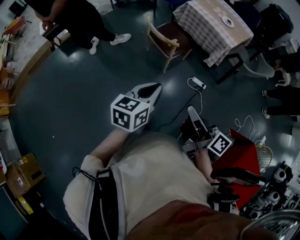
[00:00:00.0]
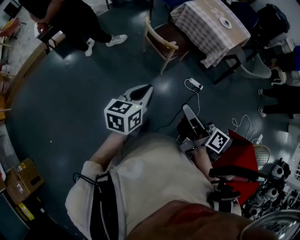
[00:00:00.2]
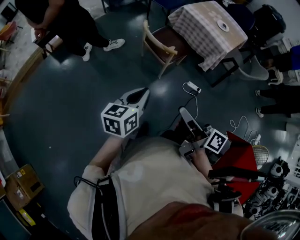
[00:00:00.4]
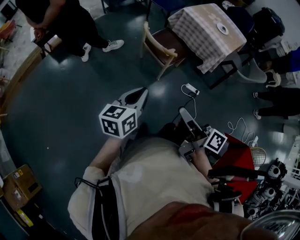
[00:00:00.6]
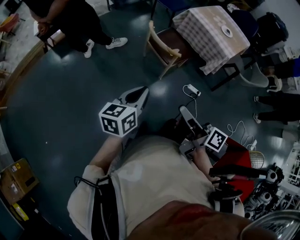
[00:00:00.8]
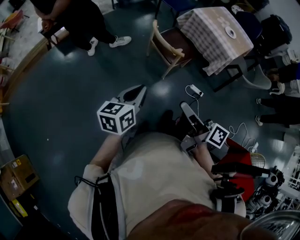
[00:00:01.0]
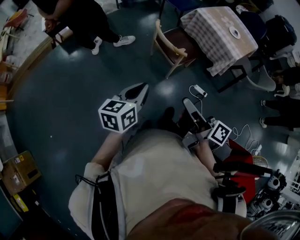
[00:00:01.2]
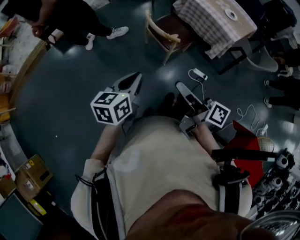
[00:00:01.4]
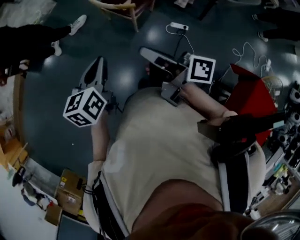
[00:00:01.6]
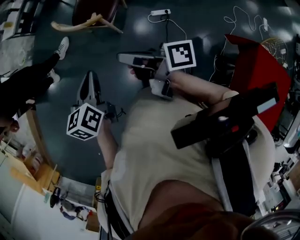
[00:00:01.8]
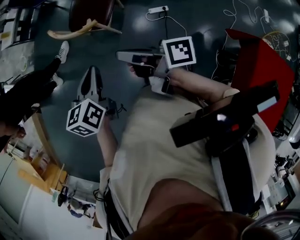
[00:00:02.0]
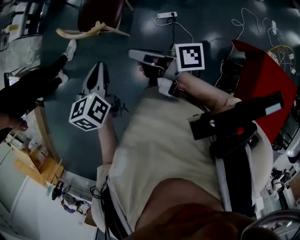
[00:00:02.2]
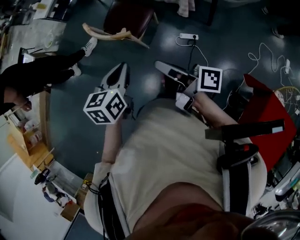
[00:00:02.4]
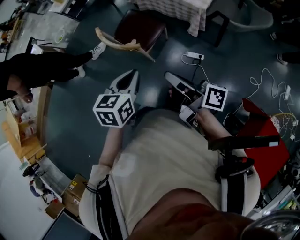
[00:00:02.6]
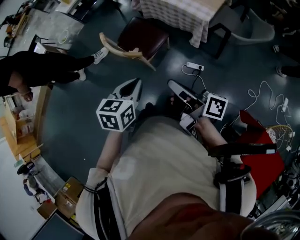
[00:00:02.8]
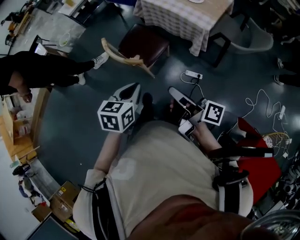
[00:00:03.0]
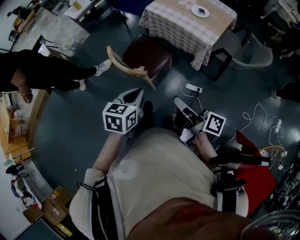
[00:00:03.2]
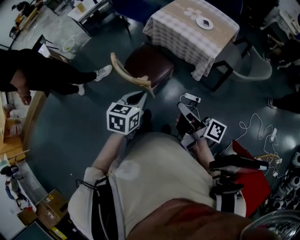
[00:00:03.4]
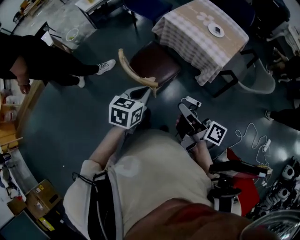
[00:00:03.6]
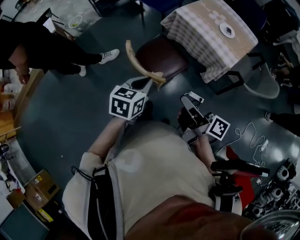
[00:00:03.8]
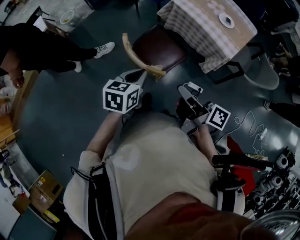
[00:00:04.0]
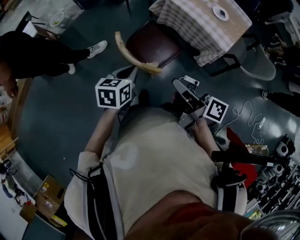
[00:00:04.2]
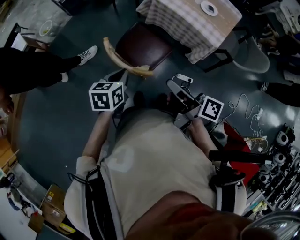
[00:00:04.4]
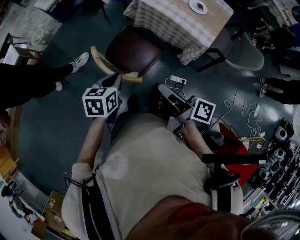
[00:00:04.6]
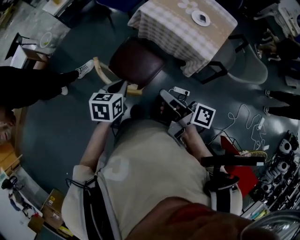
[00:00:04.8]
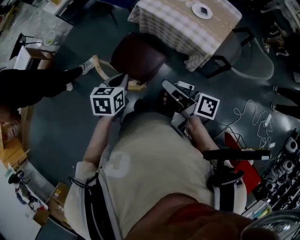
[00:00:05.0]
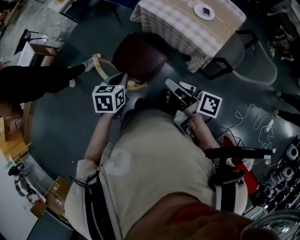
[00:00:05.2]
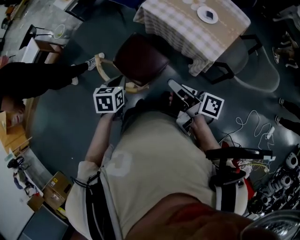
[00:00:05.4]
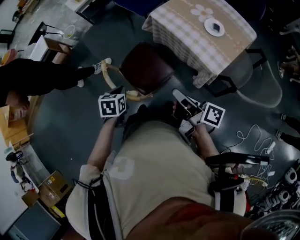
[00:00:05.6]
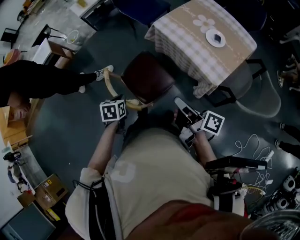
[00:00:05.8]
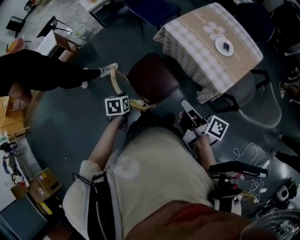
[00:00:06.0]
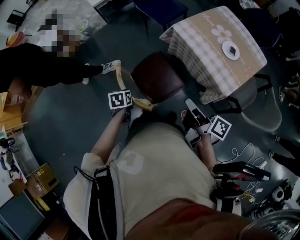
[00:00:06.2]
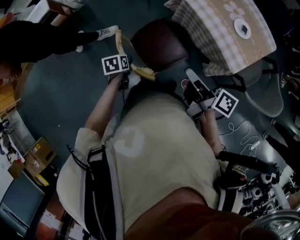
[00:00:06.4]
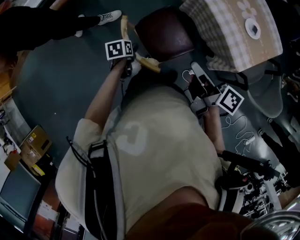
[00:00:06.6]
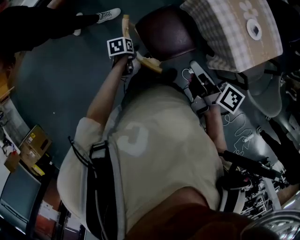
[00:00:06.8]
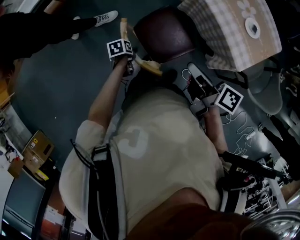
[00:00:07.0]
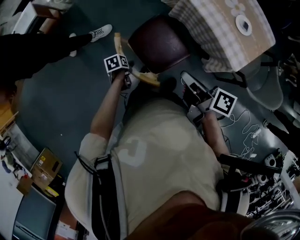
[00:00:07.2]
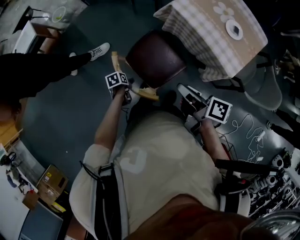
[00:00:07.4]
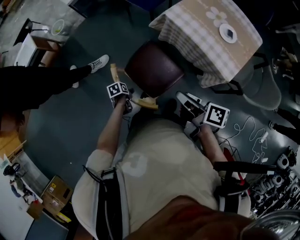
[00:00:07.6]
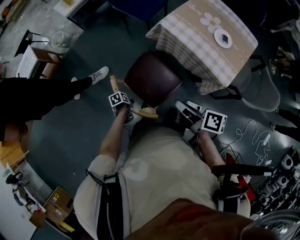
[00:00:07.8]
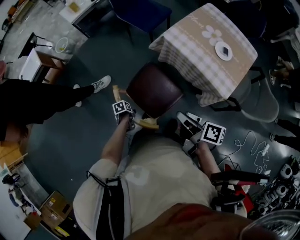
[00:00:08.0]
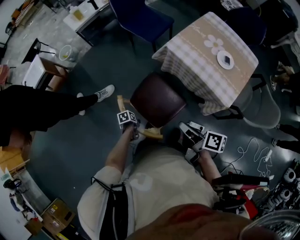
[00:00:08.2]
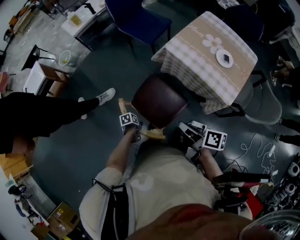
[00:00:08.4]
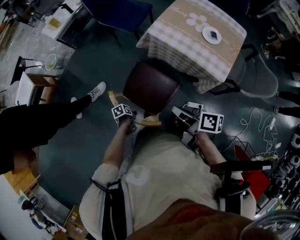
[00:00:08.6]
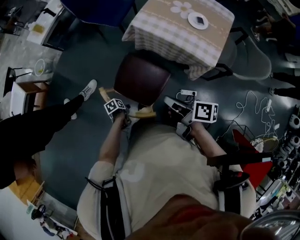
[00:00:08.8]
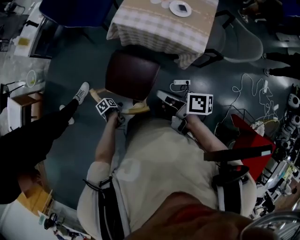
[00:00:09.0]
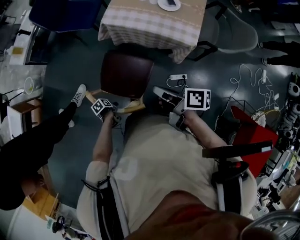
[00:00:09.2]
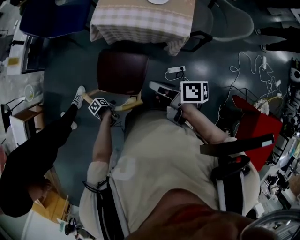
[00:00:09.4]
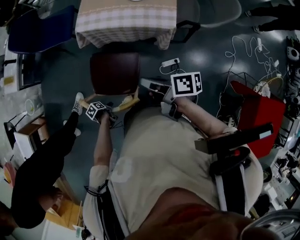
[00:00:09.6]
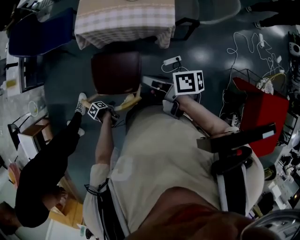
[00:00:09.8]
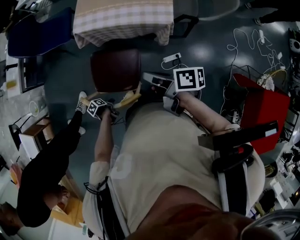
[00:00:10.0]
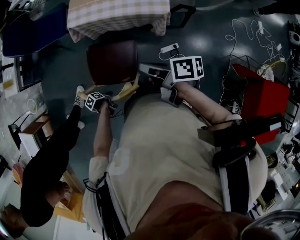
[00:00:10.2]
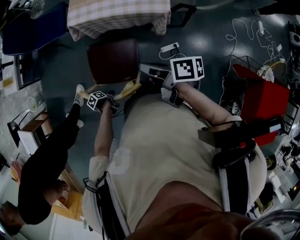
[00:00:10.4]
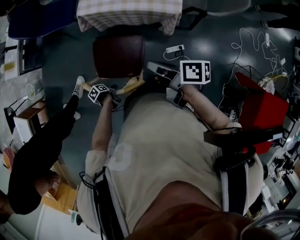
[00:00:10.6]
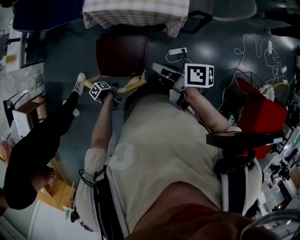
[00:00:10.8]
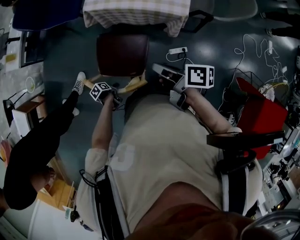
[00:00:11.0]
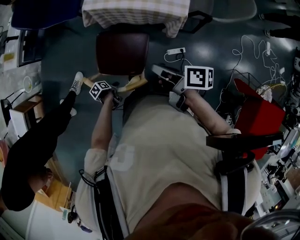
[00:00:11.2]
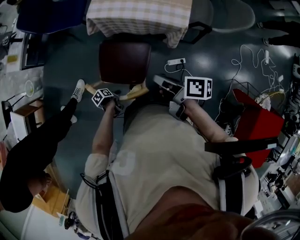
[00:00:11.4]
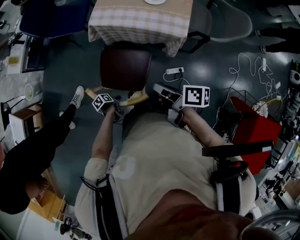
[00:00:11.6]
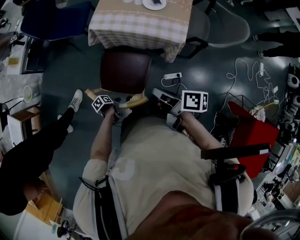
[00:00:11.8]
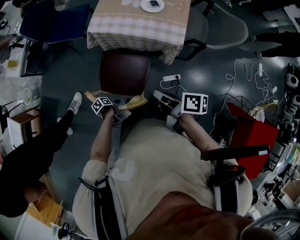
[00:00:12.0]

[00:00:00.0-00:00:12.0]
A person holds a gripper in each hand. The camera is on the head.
00:00:00.0 to 00:00:01.6: The left gripper changes place by some 15 cm.
00:00:01.6 to 00:00:03.0: The left gripper shifts by approximately 20 cm, and changes its angle by approximately 20 degrees.
00:00:03.0 to 00:00:04.4: The left gripper changes place by about 25 cm.
00:00:04.4 to 00:00:06.0: The left gripper travels downward by approximately 10 cm, and swivels approximately 30 degrees.
00:00:06.0 to 00:00:07.6: The left gripper travels downward by some 20 cm, swivels approximately 30 degrees, and opens its fingers.
00:00:10.4 to 00:00:12.0: The left gripper shifts by approximately 5 cm.

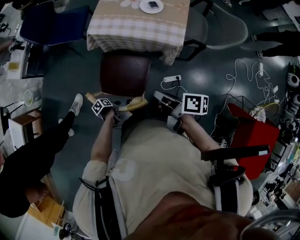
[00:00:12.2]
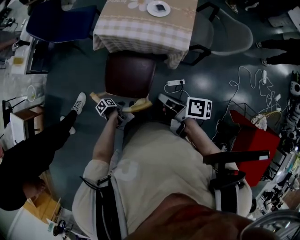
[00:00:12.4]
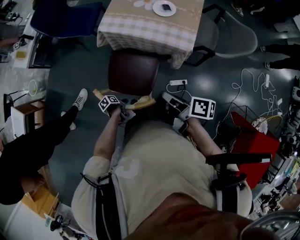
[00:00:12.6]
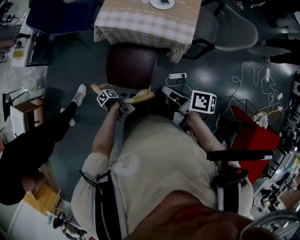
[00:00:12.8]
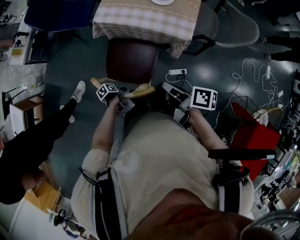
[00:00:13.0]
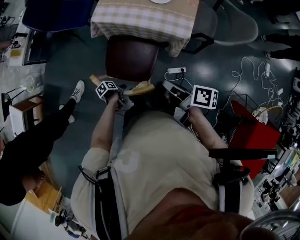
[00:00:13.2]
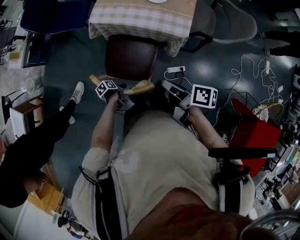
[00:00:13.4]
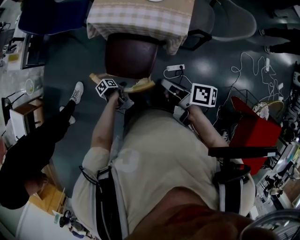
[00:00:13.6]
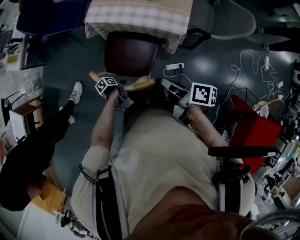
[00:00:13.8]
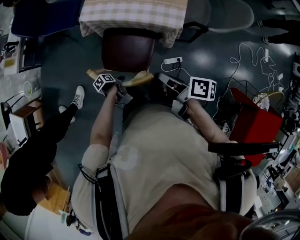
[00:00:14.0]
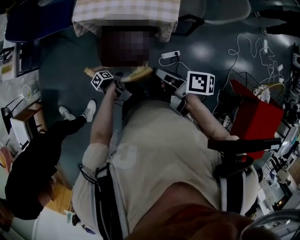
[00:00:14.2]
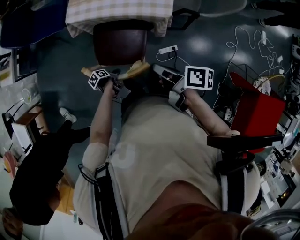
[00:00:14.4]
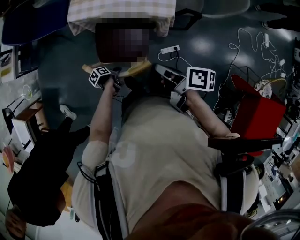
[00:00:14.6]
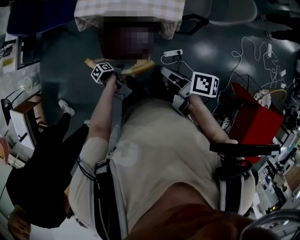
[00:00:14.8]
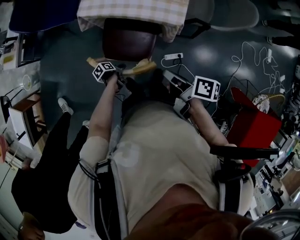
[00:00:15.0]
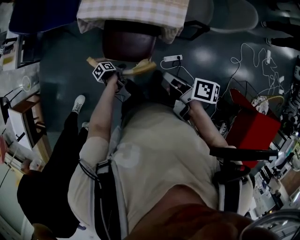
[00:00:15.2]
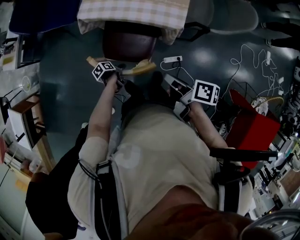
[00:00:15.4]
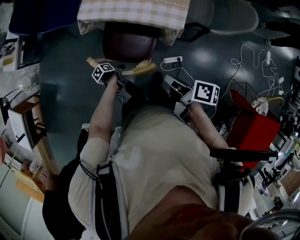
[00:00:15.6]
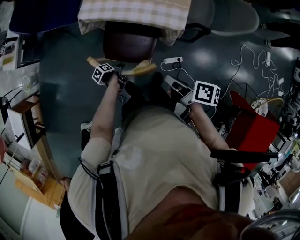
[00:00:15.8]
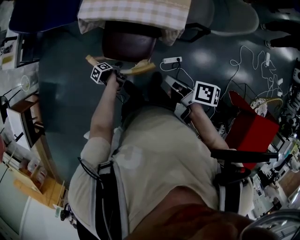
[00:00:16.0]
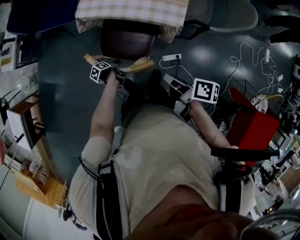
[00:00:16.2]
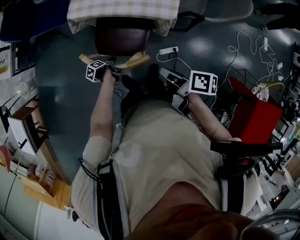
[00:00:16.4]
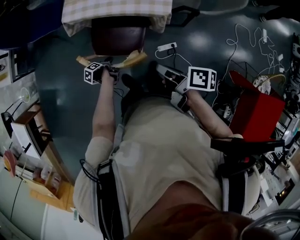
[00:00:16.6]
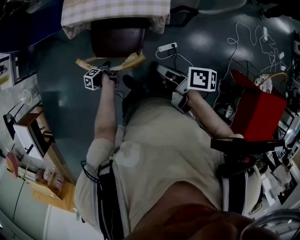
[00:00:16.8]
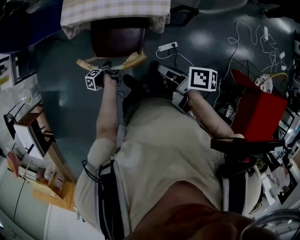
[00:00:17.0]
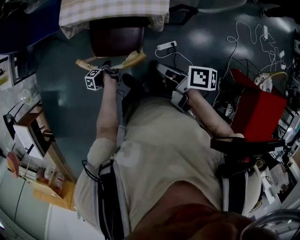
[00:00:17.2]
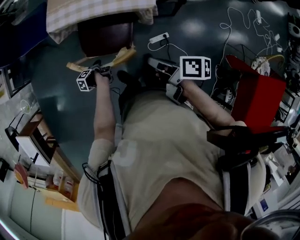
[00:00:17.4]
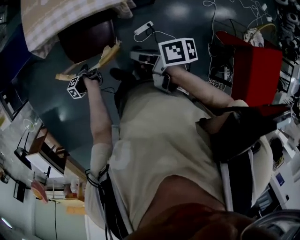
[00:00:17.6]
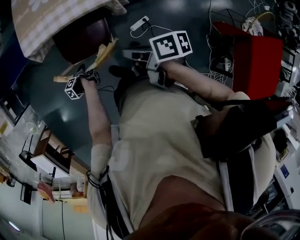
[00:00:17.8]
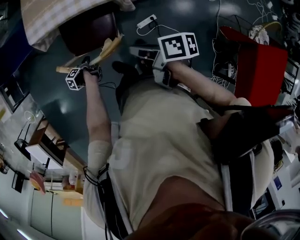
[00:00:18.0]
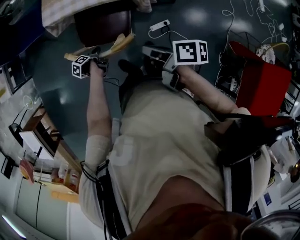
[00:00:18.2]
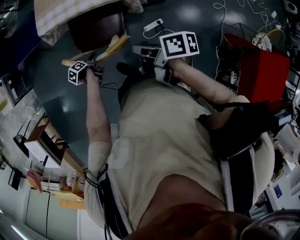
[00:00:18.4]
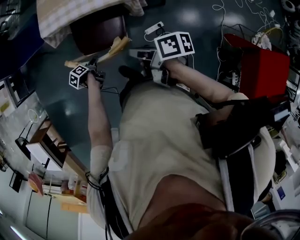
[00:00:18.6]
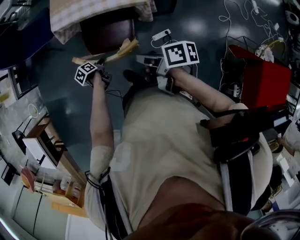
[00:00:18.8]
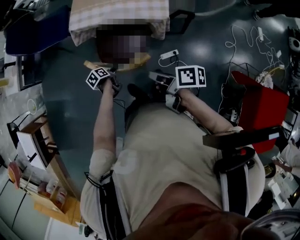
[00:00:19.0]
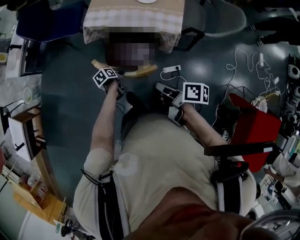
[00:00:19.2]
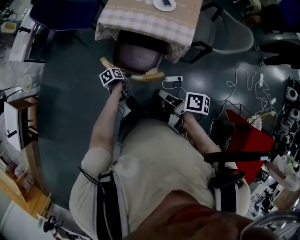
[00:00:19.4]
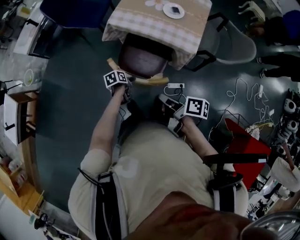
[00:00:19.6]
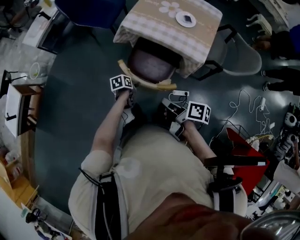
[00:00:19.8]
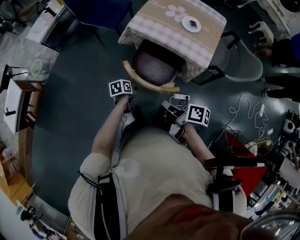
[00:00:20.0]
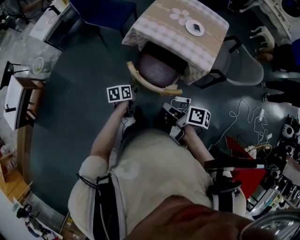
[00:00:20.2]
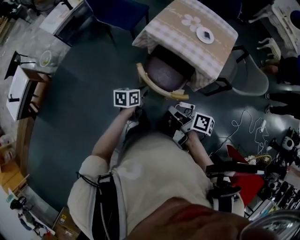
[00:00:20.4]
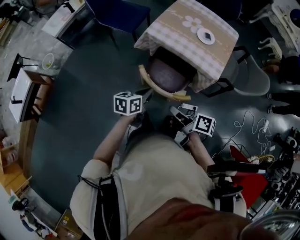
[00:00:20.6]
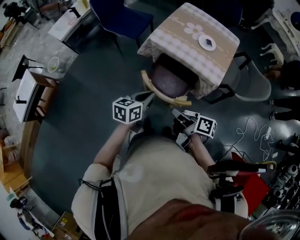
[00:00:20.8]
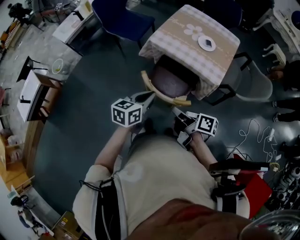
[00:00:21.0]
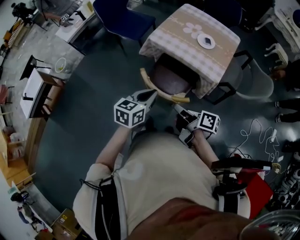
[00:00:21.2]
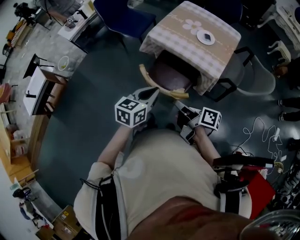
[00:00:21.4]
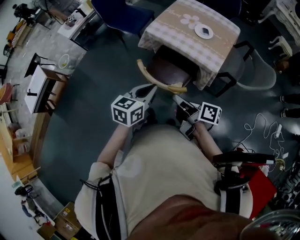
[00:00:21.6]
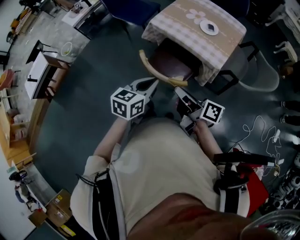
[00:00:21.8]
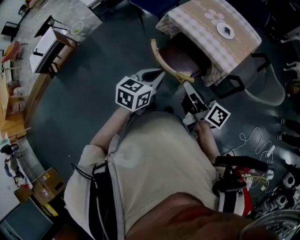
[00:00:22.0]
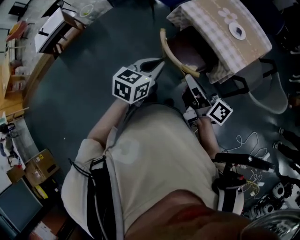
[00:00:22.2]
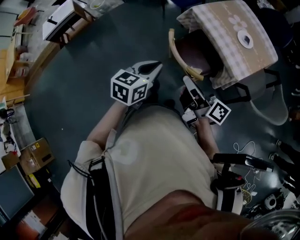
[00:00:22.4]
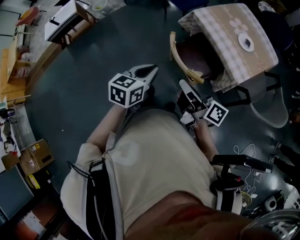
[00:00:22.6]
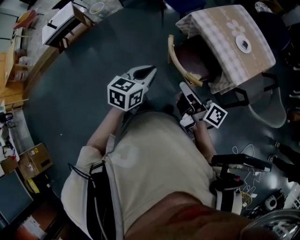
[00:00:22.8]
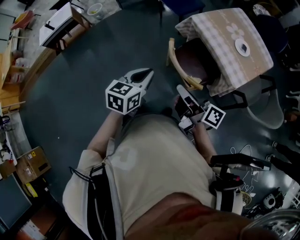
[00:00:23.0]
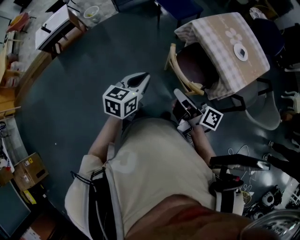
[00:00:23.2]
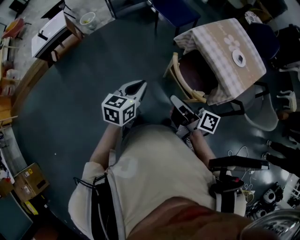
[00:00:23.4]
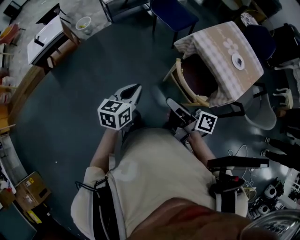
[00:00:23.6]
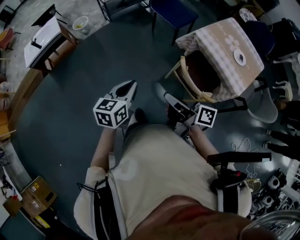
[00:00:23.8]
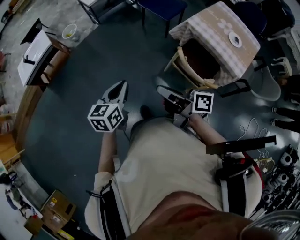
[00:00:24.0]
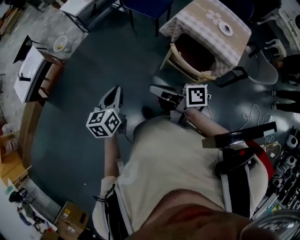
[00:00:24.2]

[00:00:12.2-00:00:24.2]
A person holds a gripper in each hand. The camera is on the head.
00:00:12.2 to 00:00:13.8: The left gripper ends up approximately 10 cm from where it was.
00:00:13.8 to 00:00:15.2: The left gripper ends up some 5 cm from where it was.
00:00:15.2 to 00:00:16.6: The left gripper swivels roughly 20 degrees.
00:00:18.2 to 00:00:19.8: The left gripper moves upward, about 5 cm, and changes its angle by some 30 degrees.
00:00:19.8 to 00:00:21.2: The left gripper is displaced upward by roughly 30 cm, turns by roughly 50 degrees, and closes up.
00:00:21.2 to 00:00:22.6: The left gripper shifts by about 10 cm, and changes its angle by approximately 30 degrees.
00:00:22.6 to 00:00:24.2: The left gripper shifts by approximately 35 cm.
